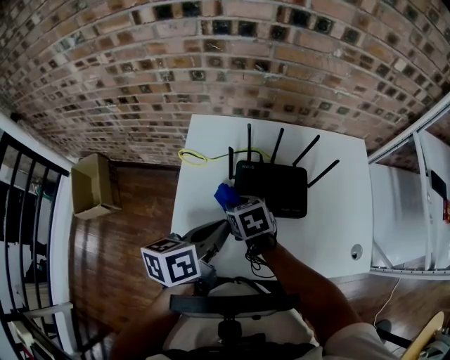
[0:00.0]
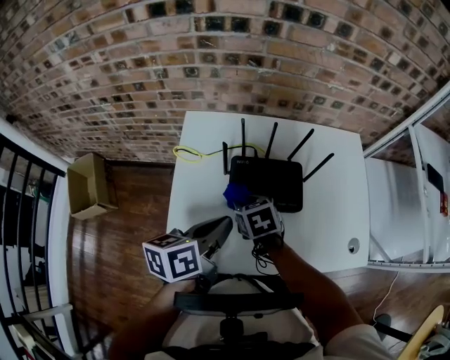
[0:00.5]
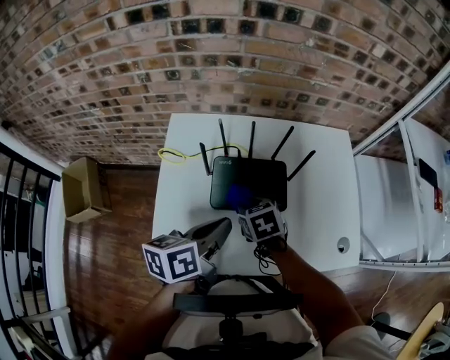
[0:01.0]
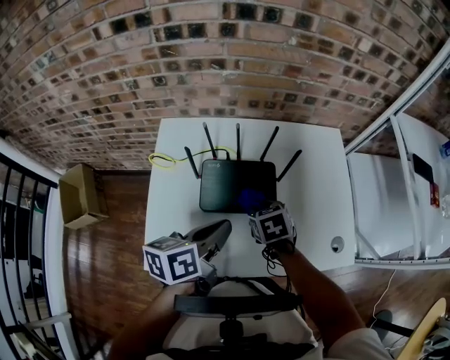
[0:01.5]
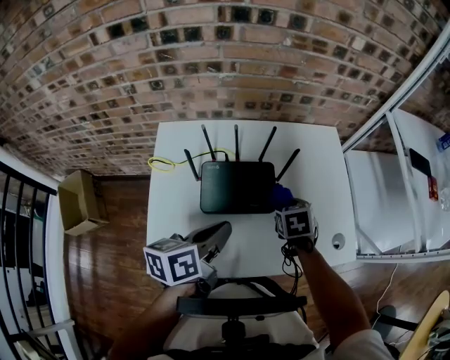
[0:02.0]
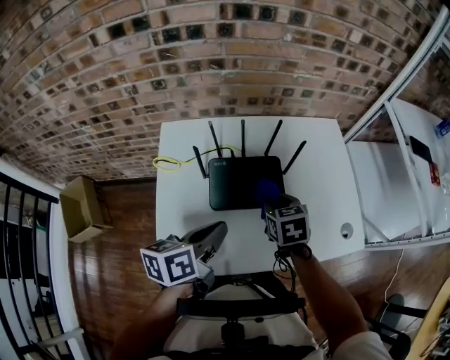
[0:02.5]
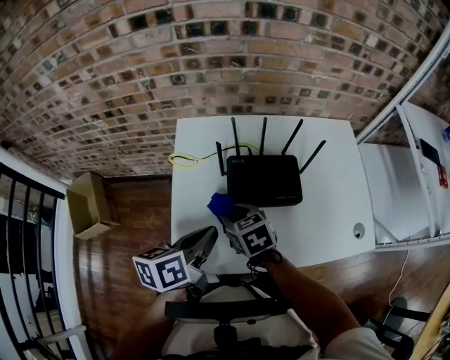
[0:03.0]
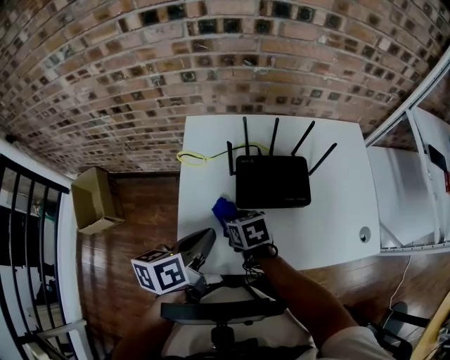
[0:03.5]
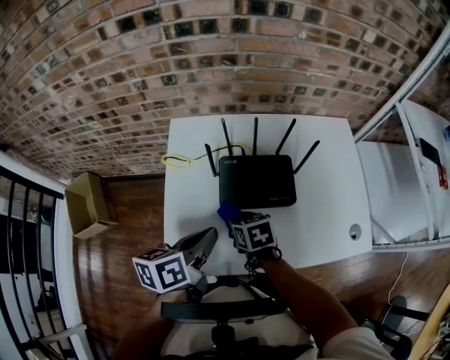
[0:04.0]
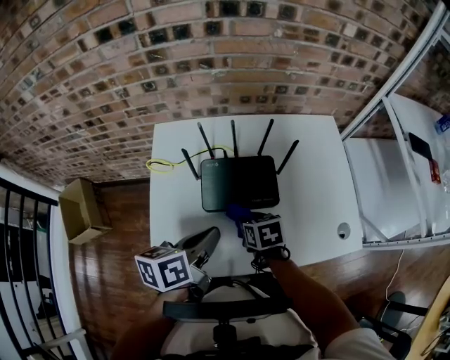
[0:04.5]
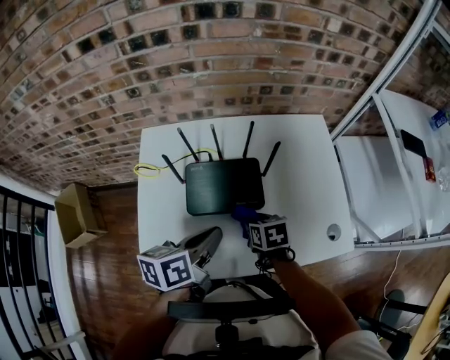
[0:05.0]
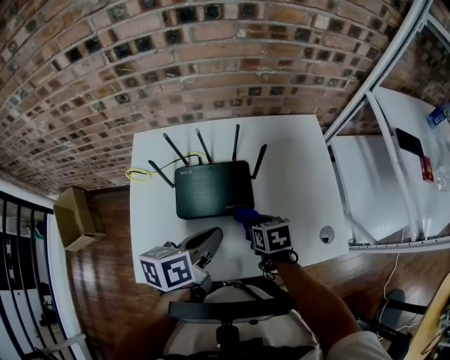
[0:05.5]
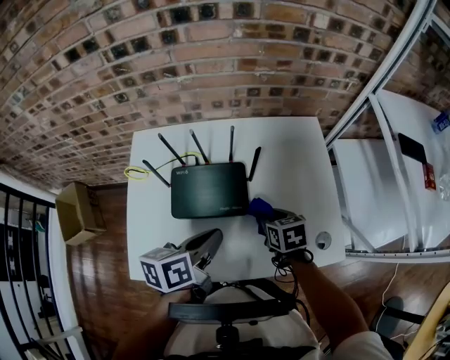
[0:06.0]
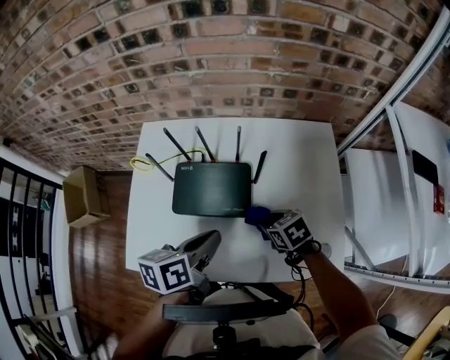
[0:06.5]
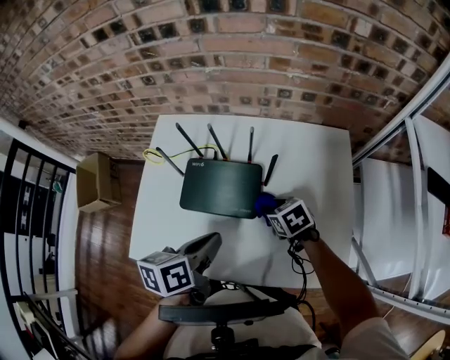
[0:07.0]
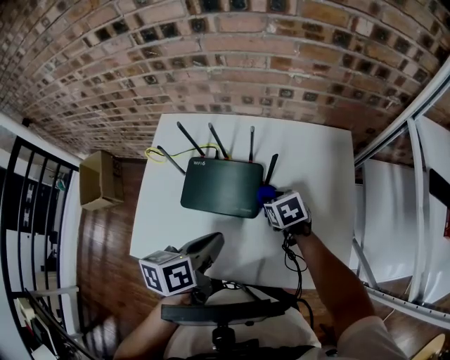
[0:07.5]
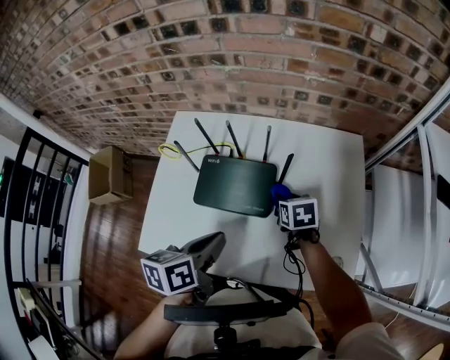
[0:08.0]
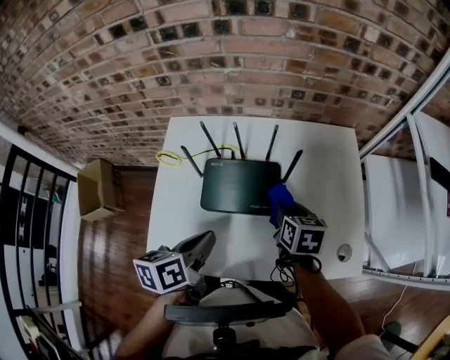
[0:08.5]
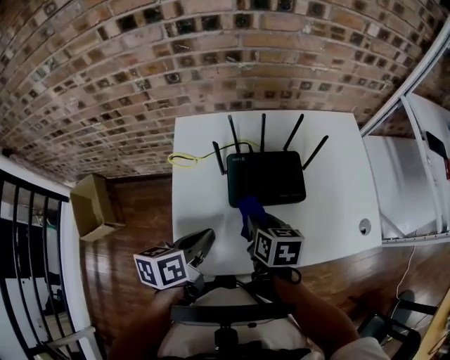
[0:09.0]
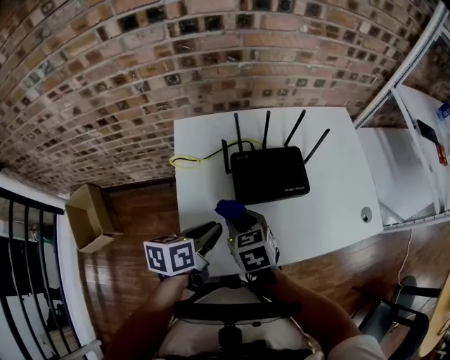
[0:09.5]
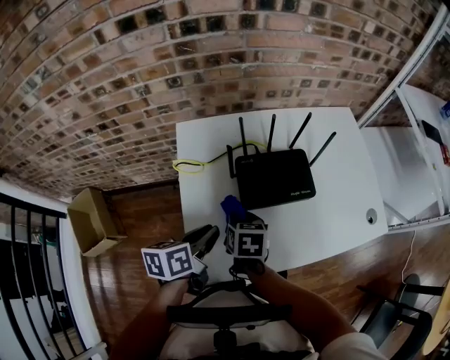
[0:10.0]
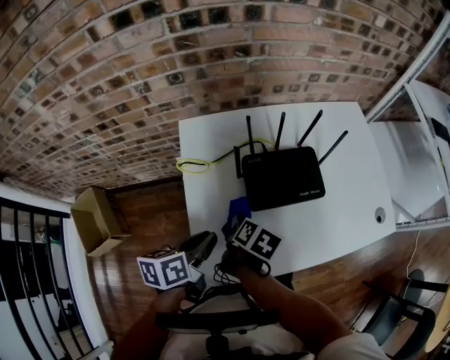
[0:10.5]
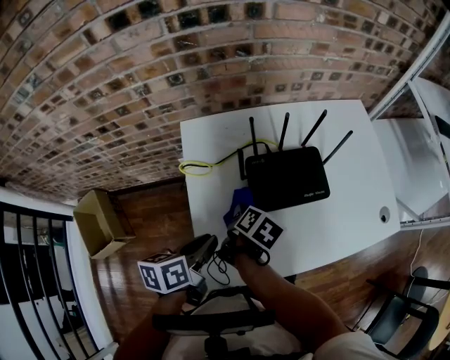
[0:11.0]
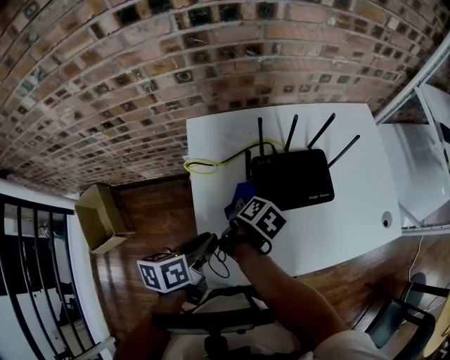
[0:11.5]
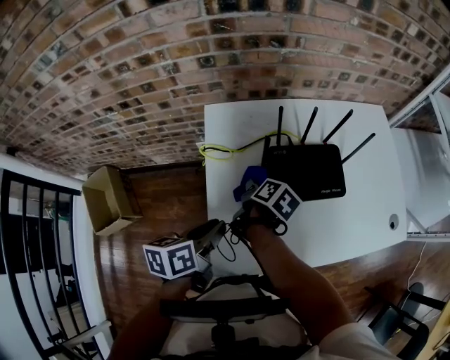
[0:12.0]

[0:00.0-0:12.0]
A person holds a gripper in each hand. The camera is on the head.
0:00.0 to 0:02.0: The right gripper changes place by roughly 30 cm, and changes its angle by roughly 30 degrees; the left gripper moves approximately 10 cm.
0:02.0 to 0:04.0: The right gripper ends up some 25 cm from where it was, and rotates about 20 degrees.
0:04.0 to 0:06.0: Both grippers travel together to the right, approximately 25 cm.
0:06.0 to 0:08.0: The right gripper is displaced forward by some 10 cm.
0:08.0 to 0:10.0: The left gripper travels to the left by some 30 cm; the right gripper travels to the left and backward by roughly 35 cm, and turns by about 30 degrees.
0:10.0 to 0:12.0: The right gripper goes some 10 cm forward and to the left, and rolls clockwise, seen from behind, by roughly 40 degrees. Meanwhile the left gripper shifts some 5 cm to the left.

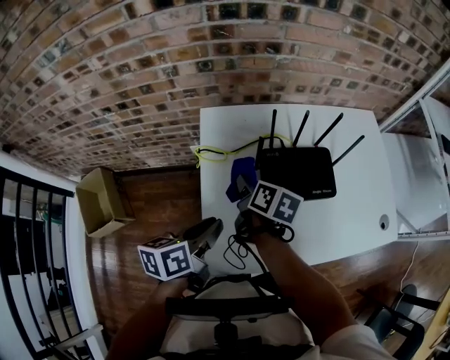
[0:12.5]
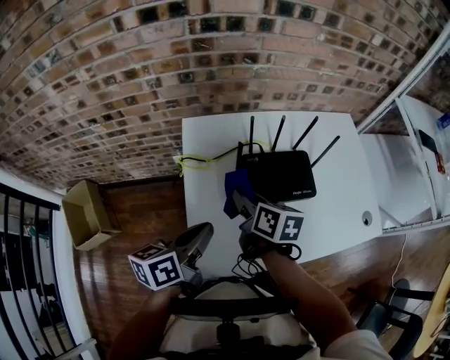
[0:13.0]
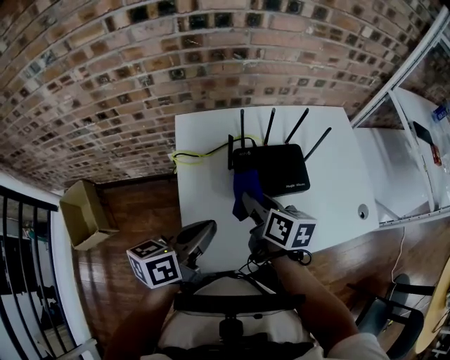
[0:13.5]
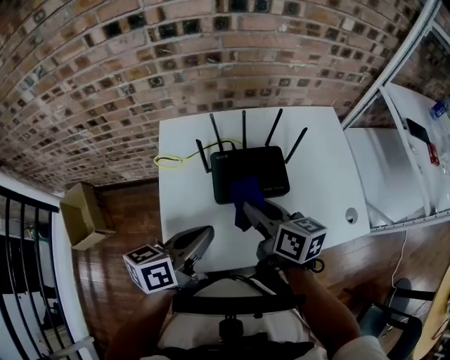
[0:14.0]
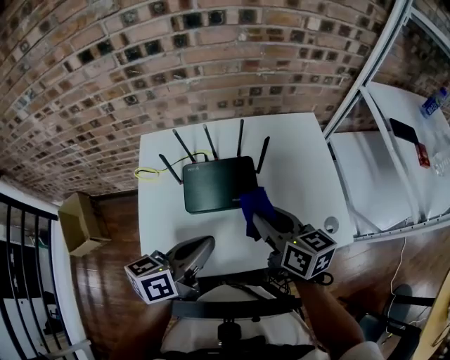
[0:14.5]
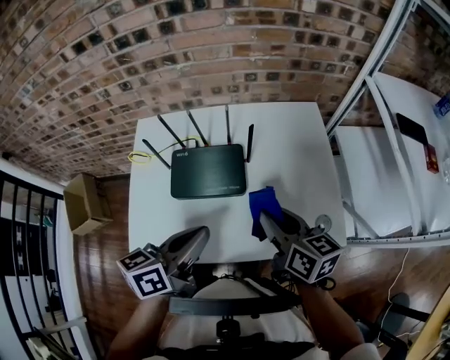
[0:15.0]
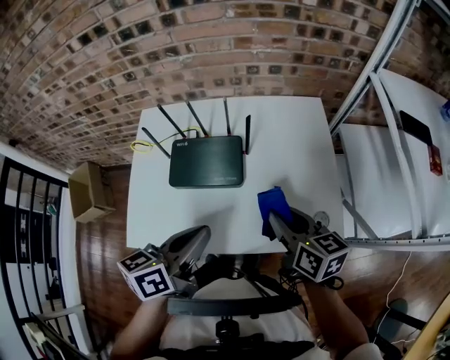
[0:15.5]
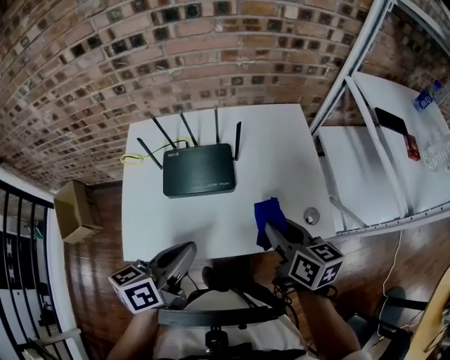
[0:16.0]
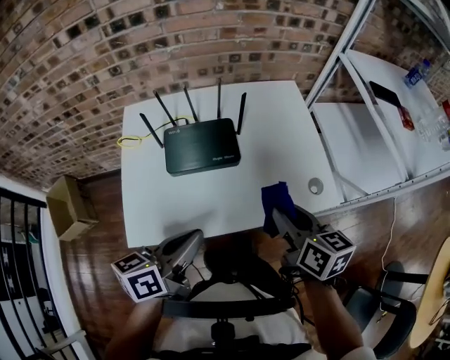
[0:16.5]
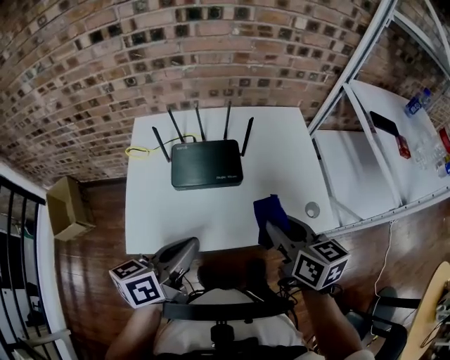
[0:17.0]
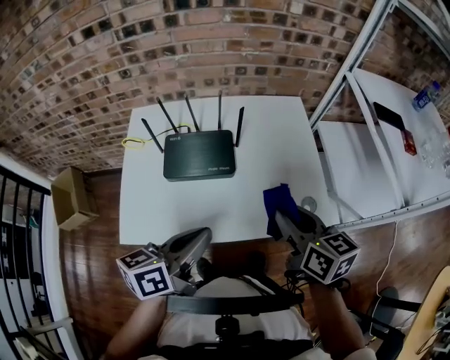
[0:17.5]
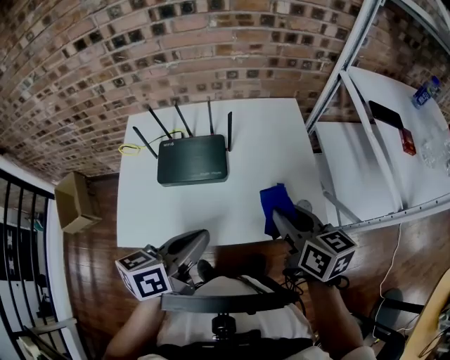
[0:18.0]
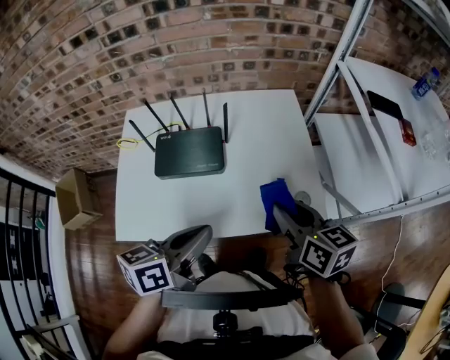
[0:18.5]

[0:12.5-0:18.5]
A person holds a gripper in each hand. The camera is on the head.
0:12.5 to 0:14.5: The right gripper travels to the right and upward by approximately 35 cm, and rotates about 30 degrees, while the left gripper is displaced to the right by roughly 30 cm, swivels some 20 degrees, and closes.
0:14.5 to 0:16.5: The left gripper heads backward, covering about 10 cm; the right gripper moves backward and to the right, approximately 15 cm.
0:16.5 to 0:18.5: Both grippers travel together to the right, some 10 cm.

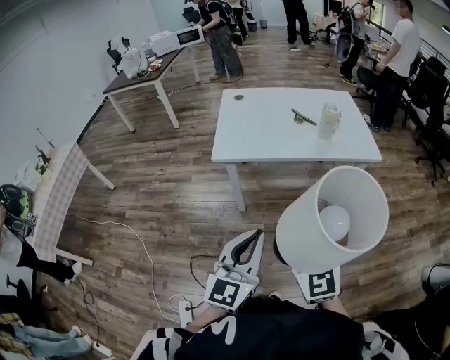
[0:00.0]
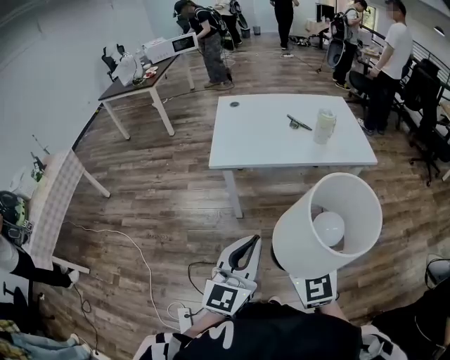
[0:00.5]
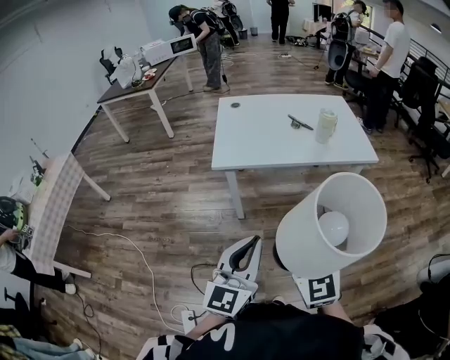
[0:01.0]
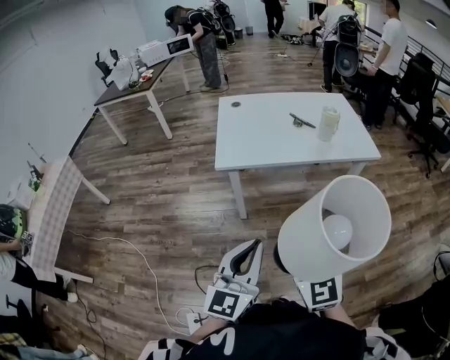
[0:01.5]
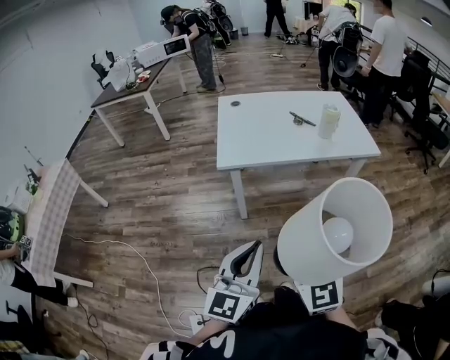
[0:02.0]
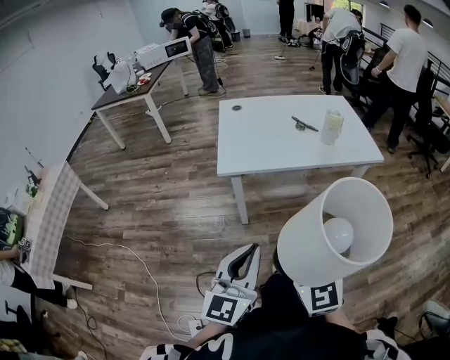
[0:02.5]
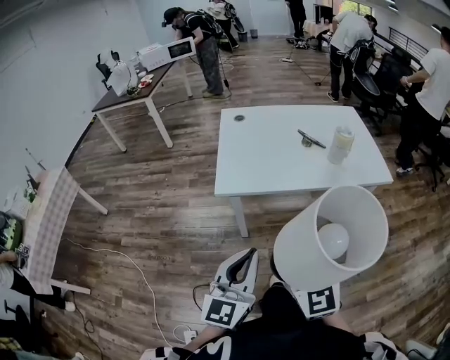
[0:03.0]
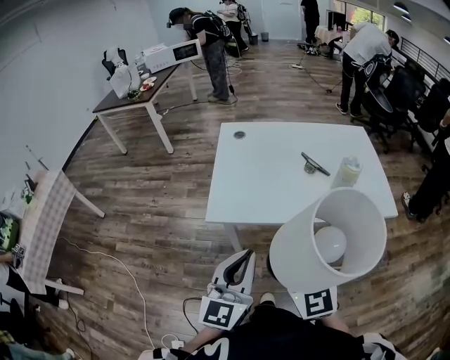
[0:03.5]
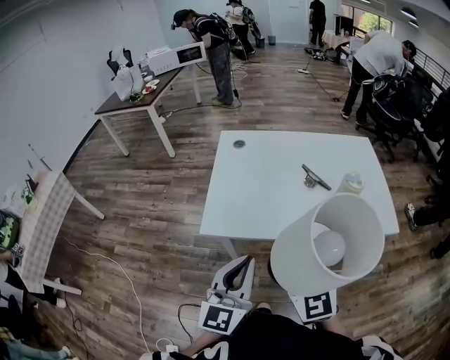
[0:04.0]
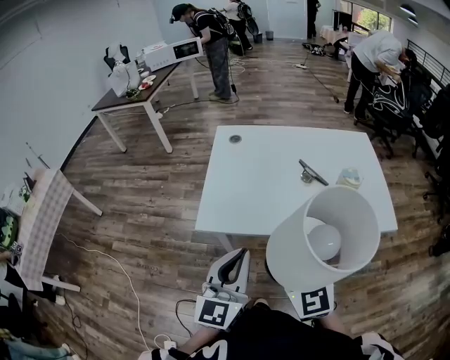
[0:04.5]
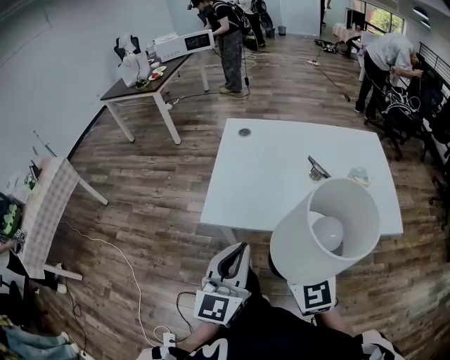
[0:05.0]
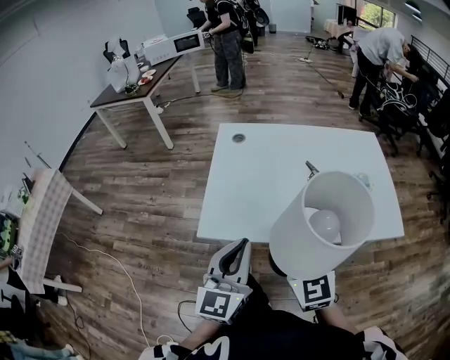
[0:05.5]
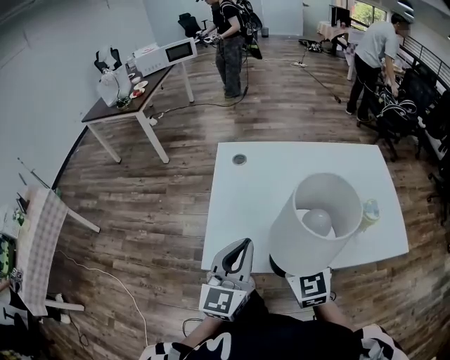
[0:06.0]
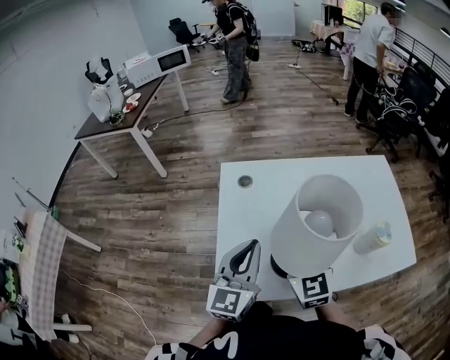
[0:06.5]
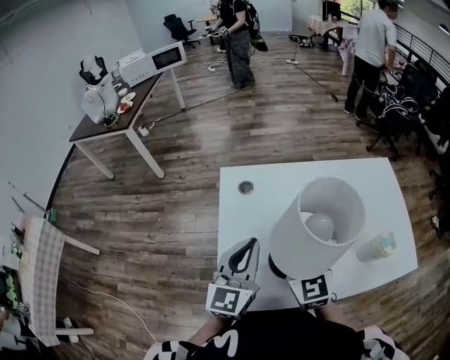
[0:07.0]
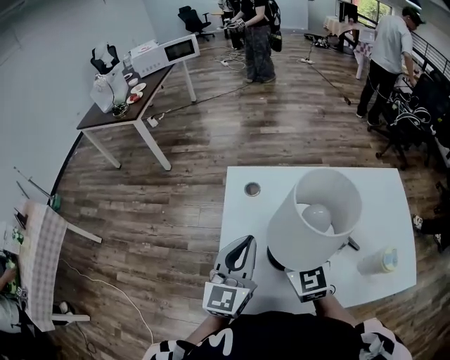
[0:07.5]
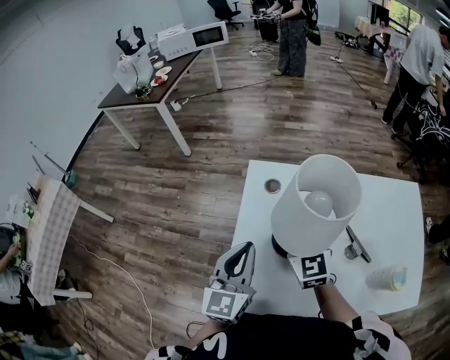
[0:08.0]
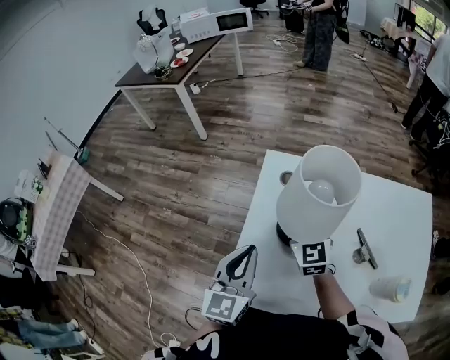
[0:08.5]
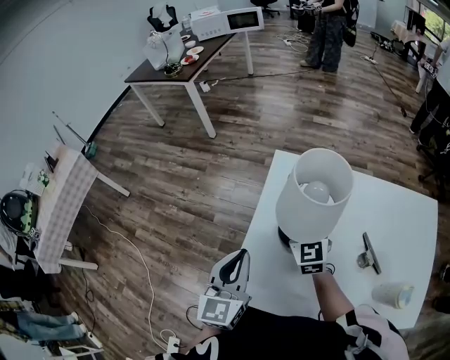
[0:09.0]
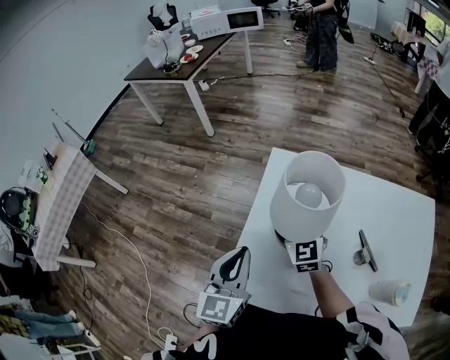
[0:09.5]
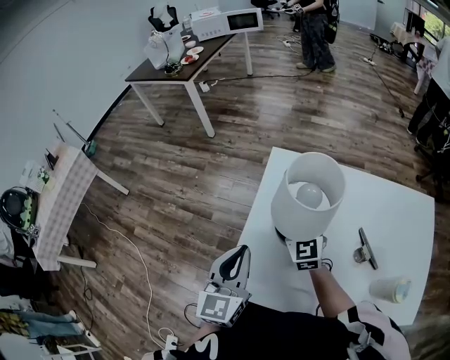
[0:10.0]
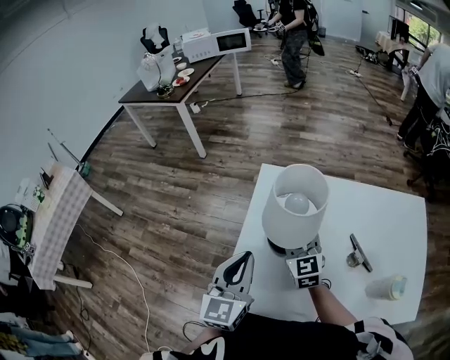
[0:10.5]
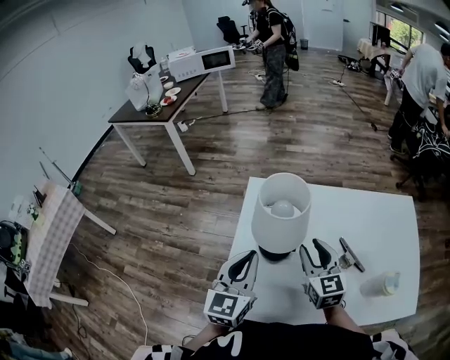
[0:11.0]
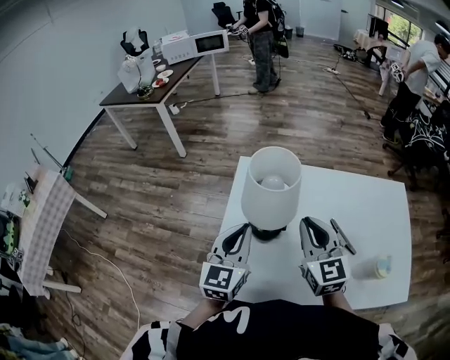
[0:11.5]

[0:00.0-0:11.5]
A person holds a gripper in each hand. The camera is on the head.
0:00.0 to 0:02.0: The two grippers go roughly 10 cm to the left.
0:02.0 to 0:04.0: The two grippers go about 30 cm forward.
0:04.0 to 0:06.0: Both grippers move forward, approximately 20 cm.
0:06.0 to 0:07.5: The grippers both shift forward by some 15 cm.
0:07.5 to 0:09.5: The left gripper is displaced to the left by some 10 cm, and turns by some 20 degrees, while the right gripper travels forward, downward and to the left by roughly 15 cm.
0:09.5 to 0:11.5: The right gripper goes approximately 20 cm to the right, backward and upward. The left gripper moves to the right, about 5 cm.
